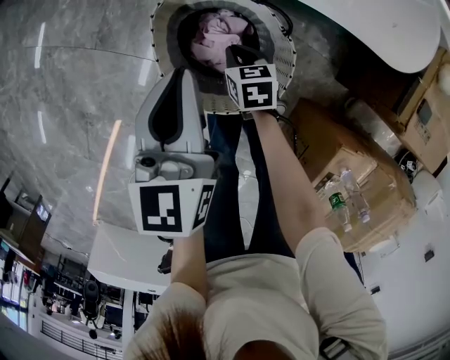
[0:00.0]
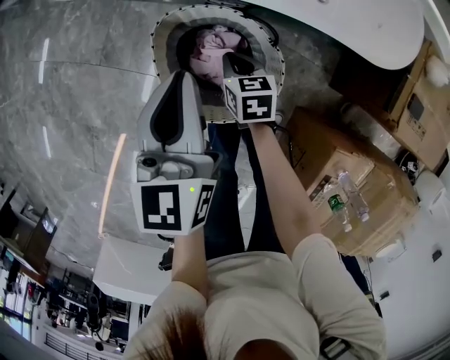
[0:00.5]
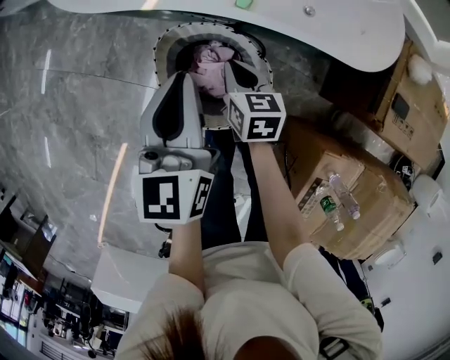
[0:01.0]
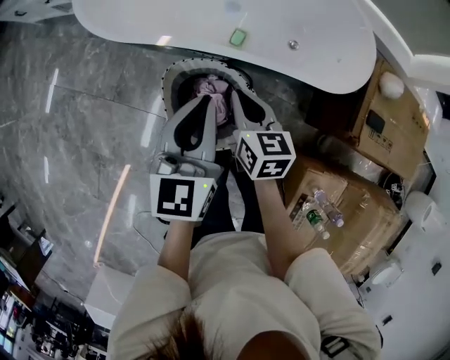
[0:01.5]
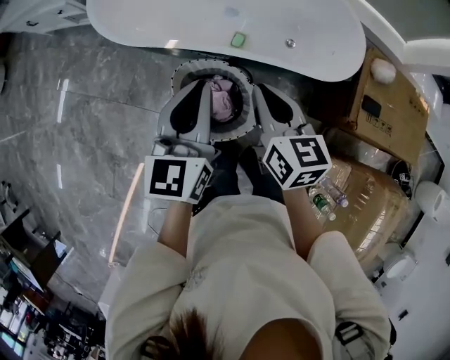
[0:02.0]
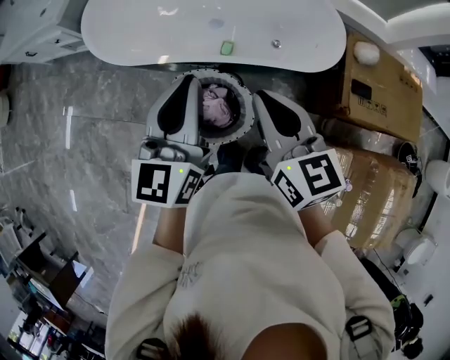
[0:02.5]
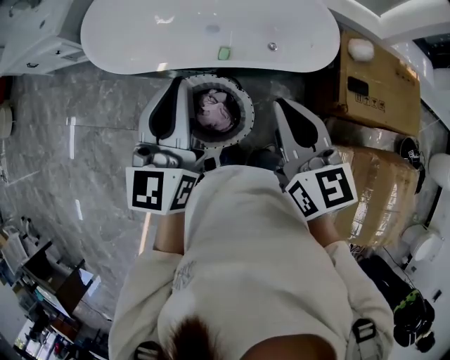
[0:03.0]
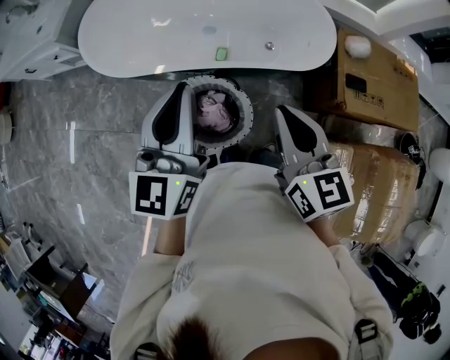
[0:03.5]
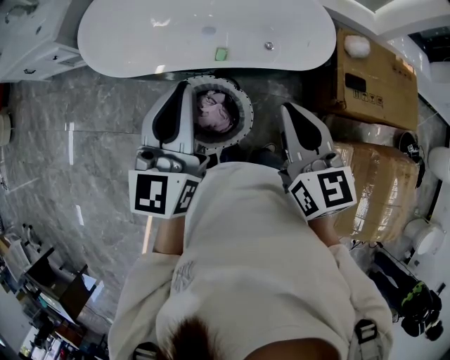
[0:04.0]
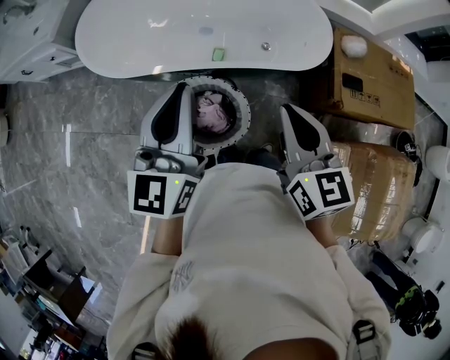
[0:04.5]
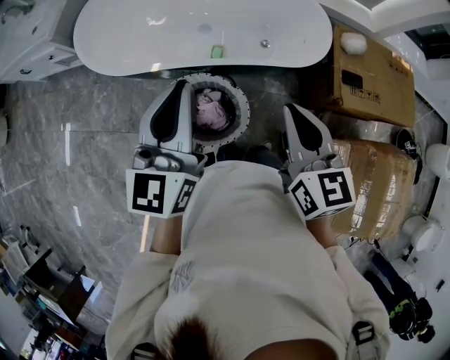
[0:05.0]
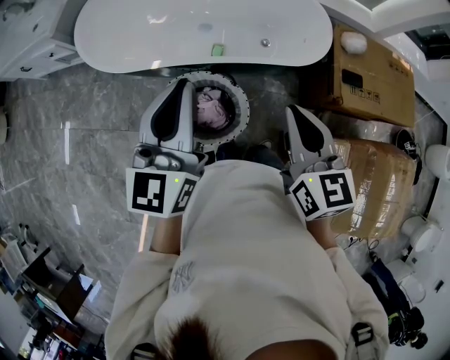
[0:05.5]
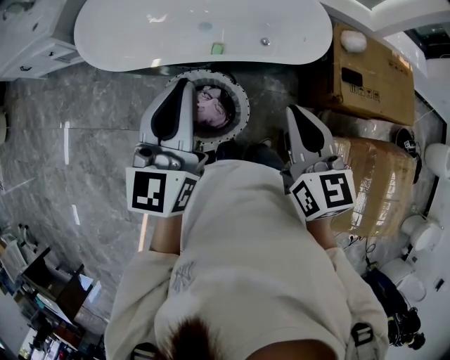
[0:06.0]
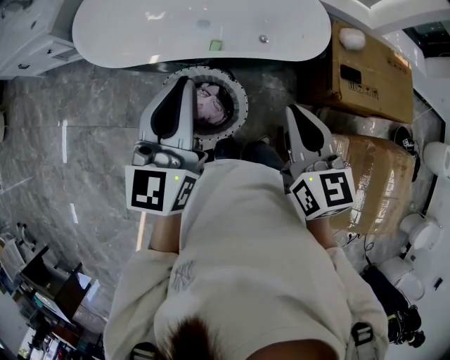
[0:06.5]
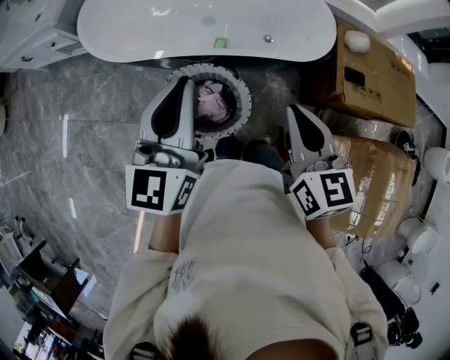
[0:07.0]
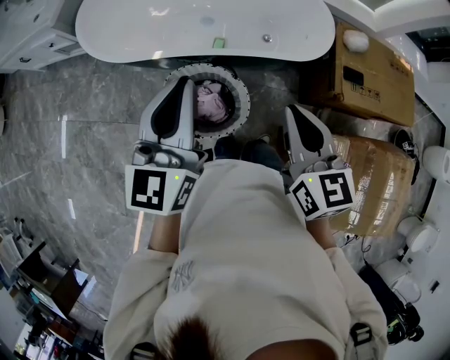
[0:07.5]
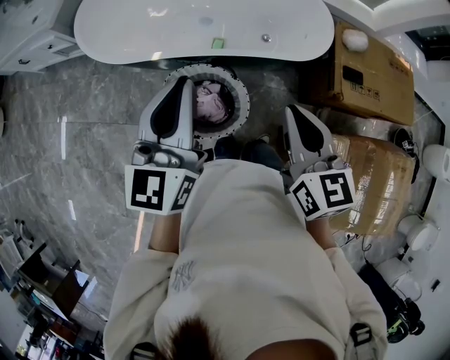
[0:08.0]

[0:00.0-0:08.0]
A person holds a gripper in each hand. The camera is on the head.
0:00.0 to 0:02.0: The right gripper travels upward by approximately 50 cm, and tips its fingers upward by some 30 degrees, while the left gripper moves upward, roughly 25 cm, and swivels some 20 degrees.
0:02.0 to 0:04.0: The right gripper goes roughly 15 cm upward, backward and to the right; the left gripper is displaced upward by about 10 cm.
0:04.0 to 0:08.0: There are only small adjustments of the grippers.

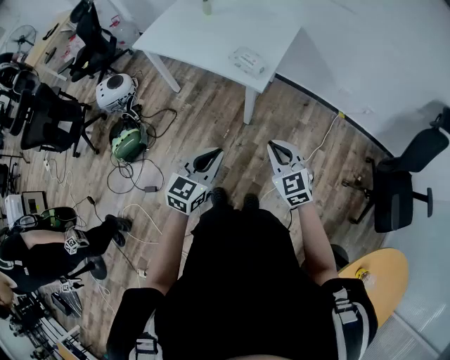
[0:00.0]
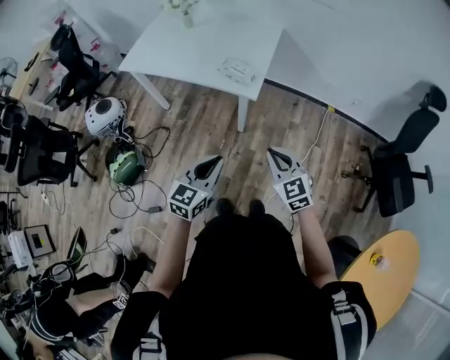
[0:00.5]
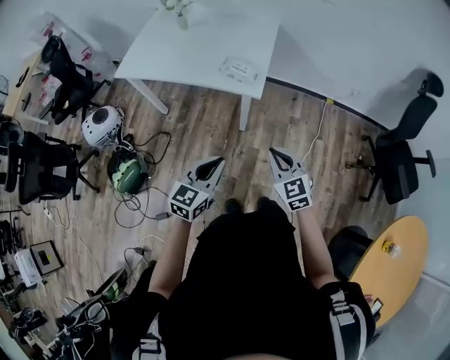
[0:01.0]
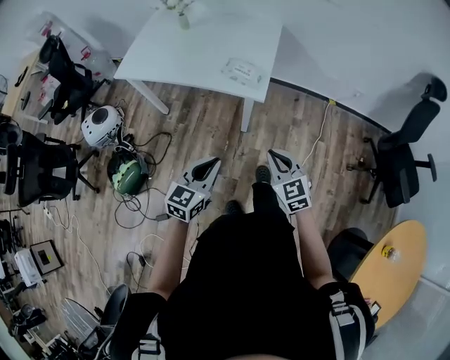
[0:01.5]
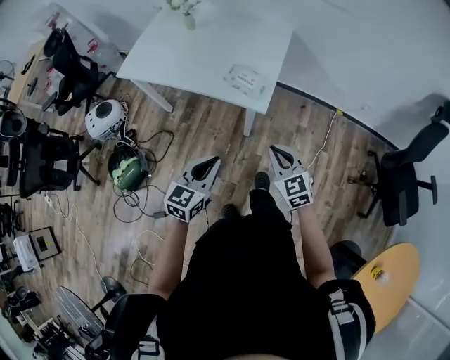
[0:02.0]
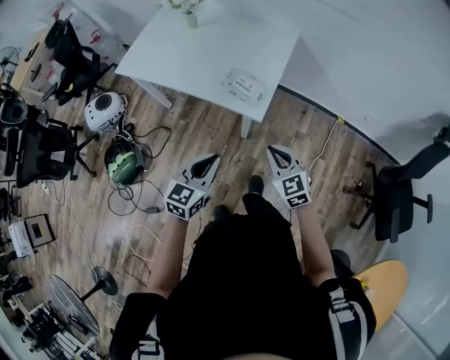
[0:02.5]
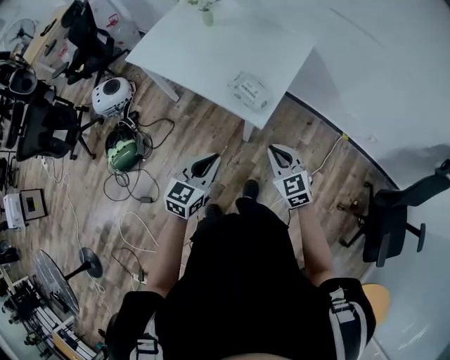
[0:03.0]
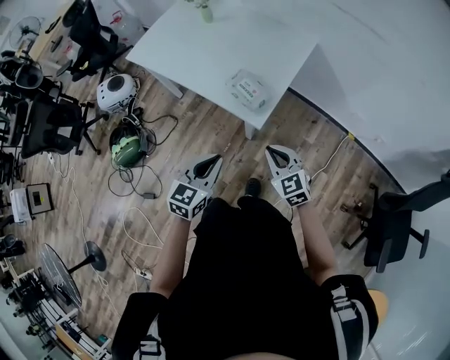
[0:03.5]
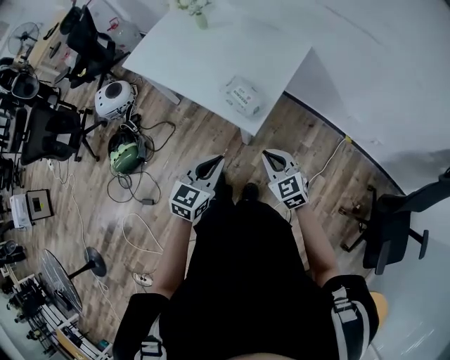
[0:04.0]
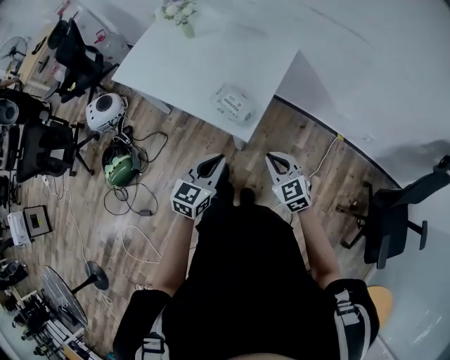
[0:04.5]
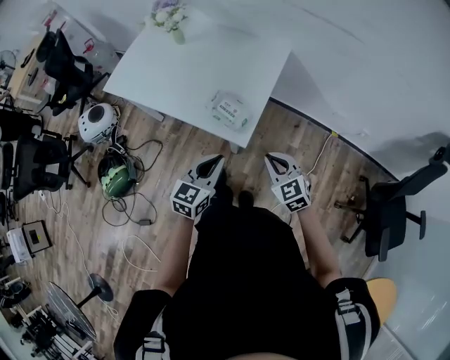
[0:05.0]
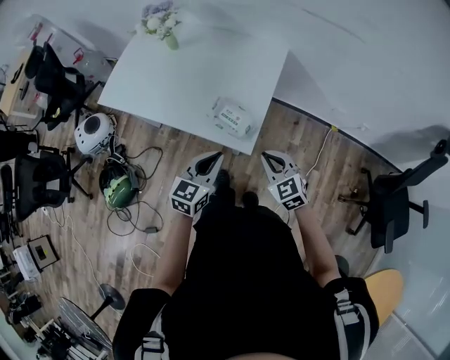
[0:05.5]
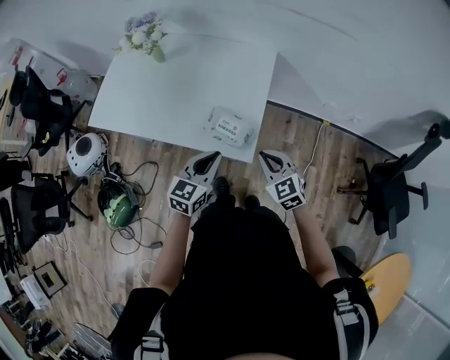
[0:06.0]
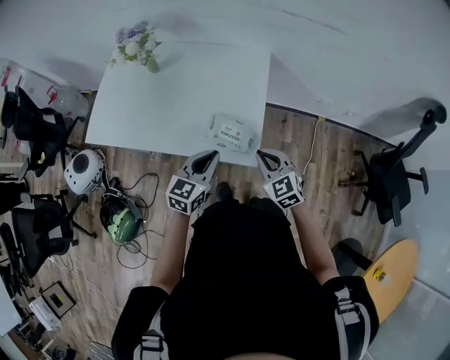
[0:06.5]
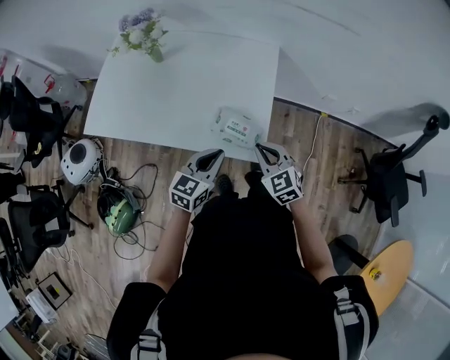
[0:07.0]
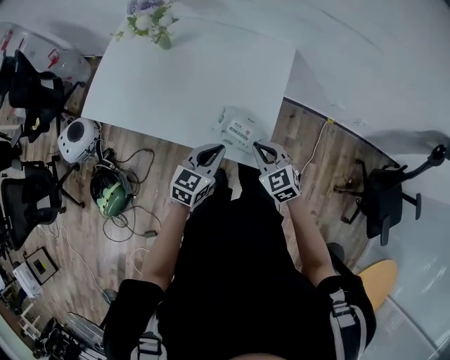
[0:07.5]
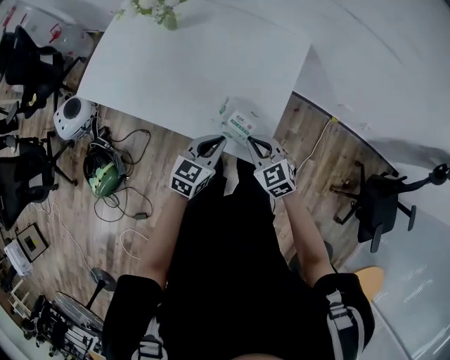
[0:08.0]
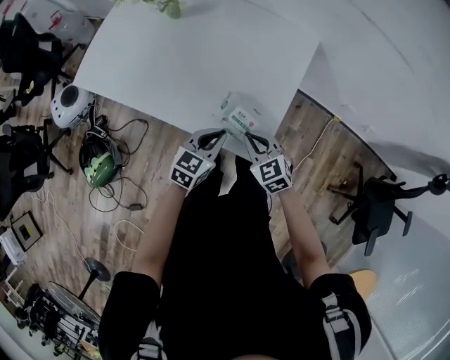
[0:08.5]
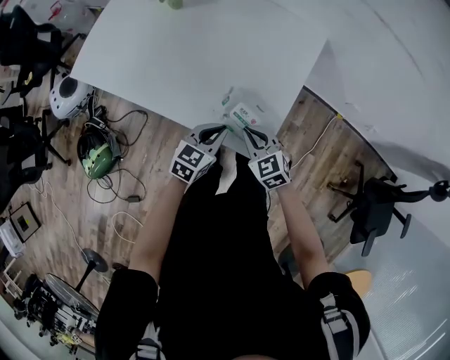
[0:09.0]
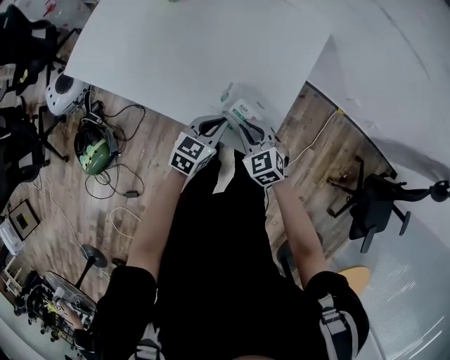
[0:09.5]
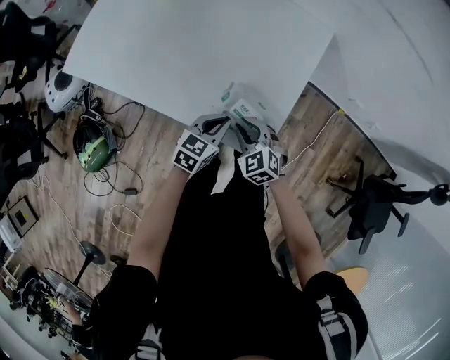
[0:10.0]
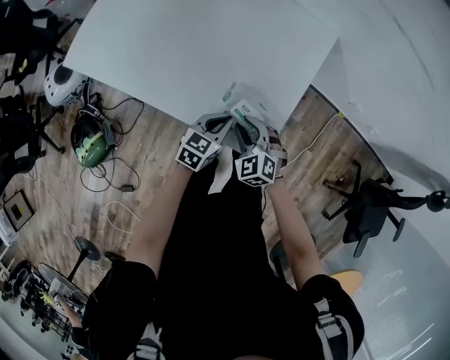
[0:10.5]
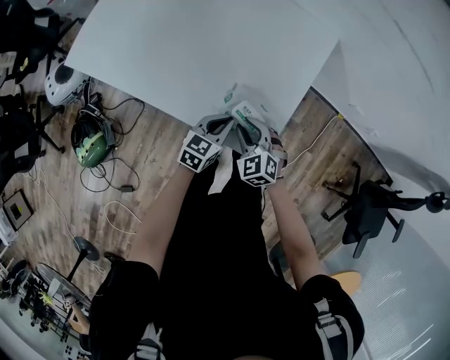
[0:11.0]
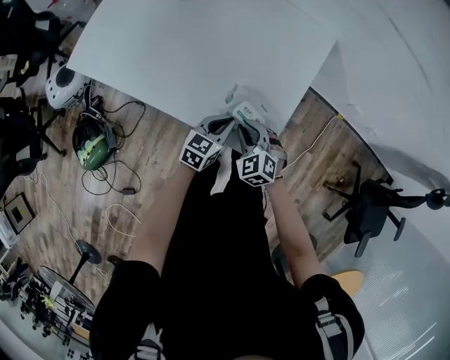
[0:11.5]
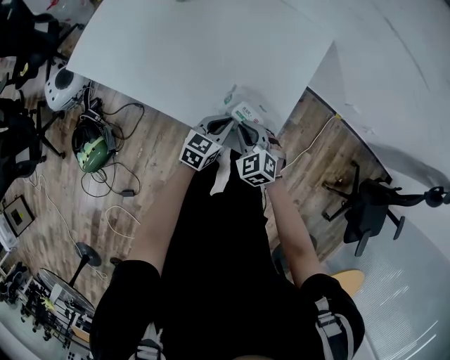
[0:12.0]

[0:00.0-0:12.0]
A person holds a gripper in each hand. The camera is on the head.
0:00.0 to 0:02.0: The grippers both shift forward and to the left by about 15 cm.
0:02.0 to 0:04.0: The left gripper heads to the right and forward, covering some 20 cm. The right gripper moves forward and to the right, approximately 15 cm.
0:04.0 to 0:06.0: Both grippers travel together forward, some 15 cm.
0:06.0 to 0:08.0: The right gripper goes some 20 cm to the left, forward and downward. Meanwhile the left gripper goes about 15 cm downward, forward and to the left.
0:08.0 to 0:10.0: Both grippers travel together downward, approximately 10 cm. The right gripper opens.
0:10.0 to 0:12.0: The grippers make only small movements.

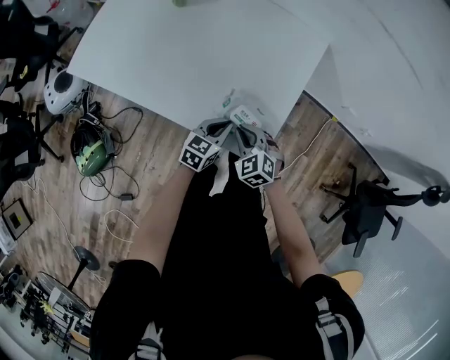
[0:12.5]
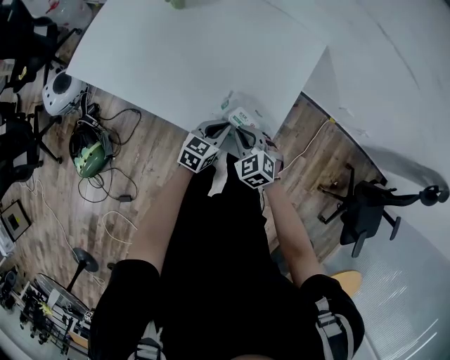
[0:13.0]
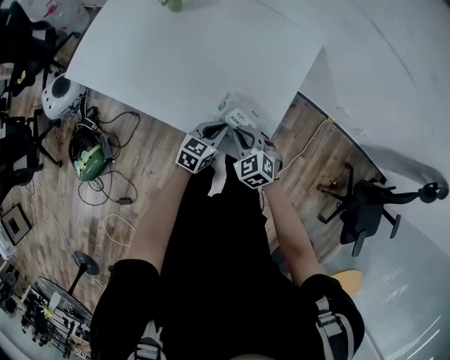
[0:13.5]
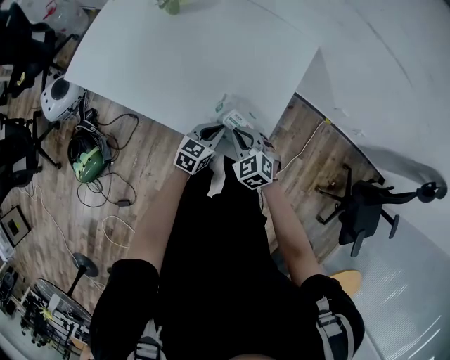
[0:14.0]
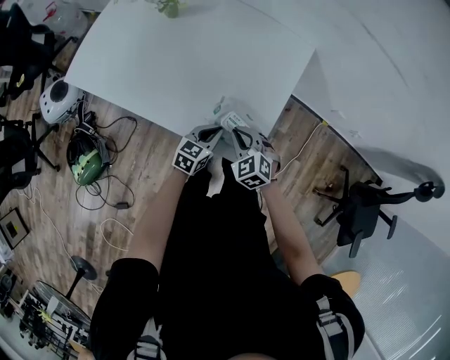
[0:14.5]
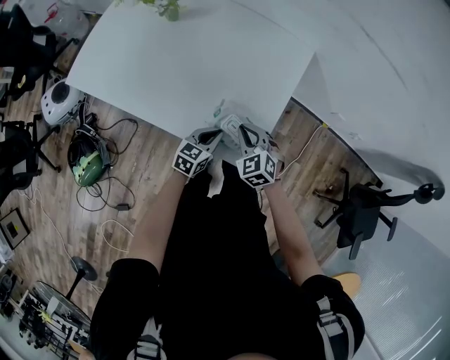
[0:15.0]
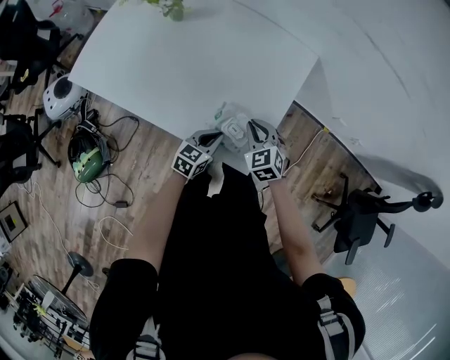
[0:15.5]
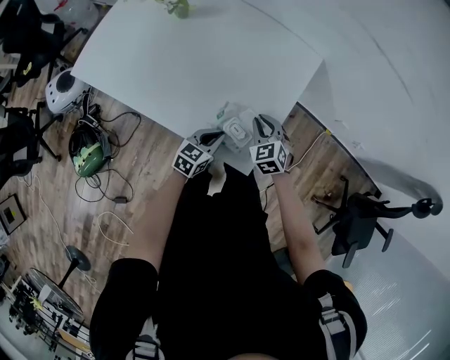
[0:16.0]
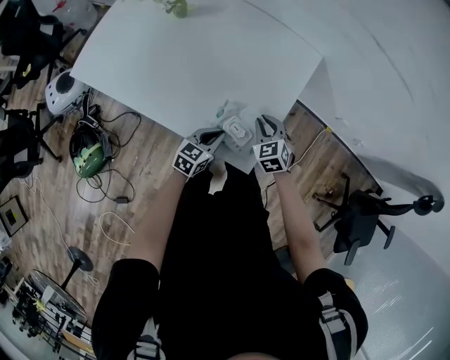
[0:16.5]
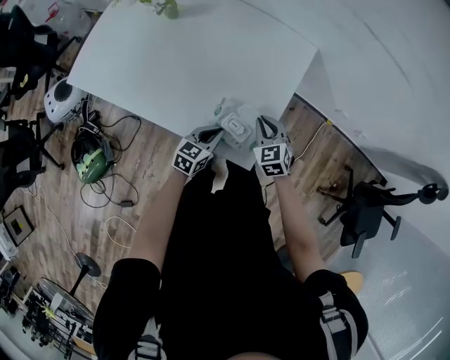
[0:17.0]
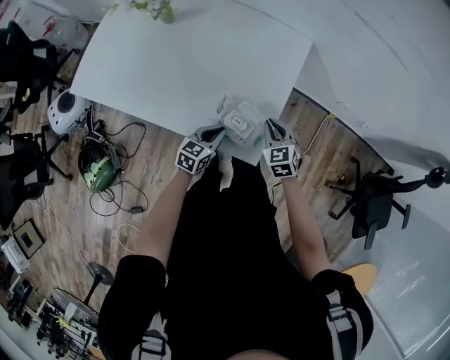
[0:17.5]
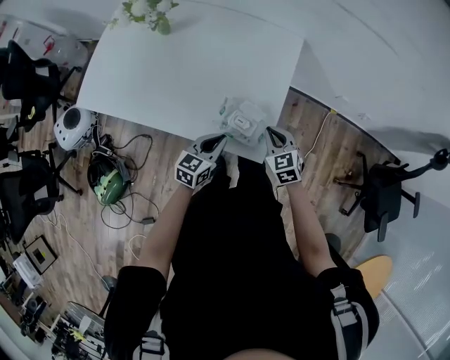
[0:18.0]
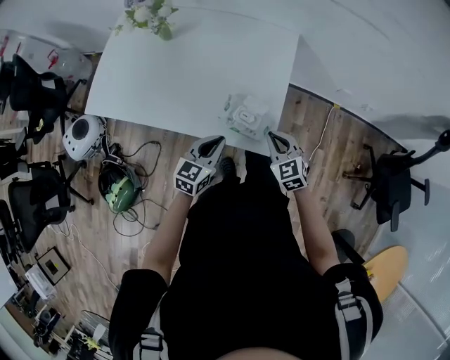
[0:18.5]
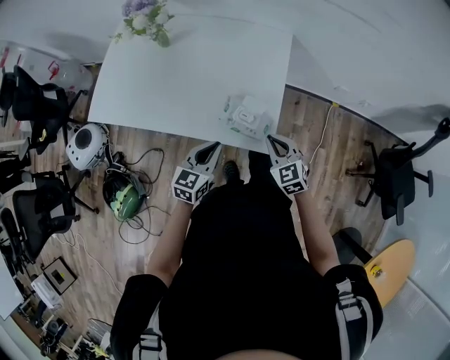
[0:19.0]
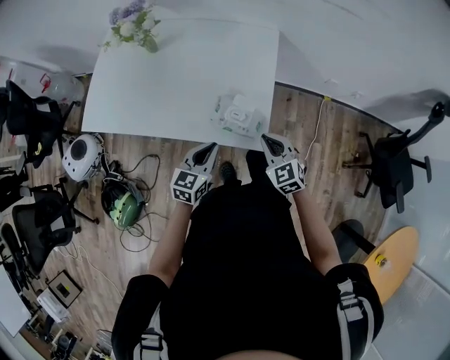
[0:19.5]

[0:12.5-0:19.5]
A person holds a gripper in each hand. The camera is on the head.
0:12.5 to 0:14.5: The grippers stay close to where they were, moving slightly.
0:14.5 to 0:16.0: The right gripper shifts approximately 10 cm forward.
0:16.0 to 0:17.5: The right gripper shifts some 5 cm to the right.
0:17.5 to 0:19.5: The left gripper moves upward and backward, about 20 cm, while the right gripper heads backward and upward, covering approximately 20 cm.
